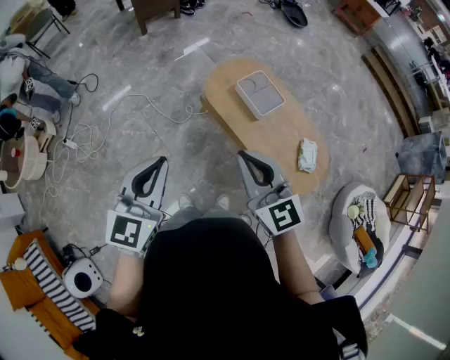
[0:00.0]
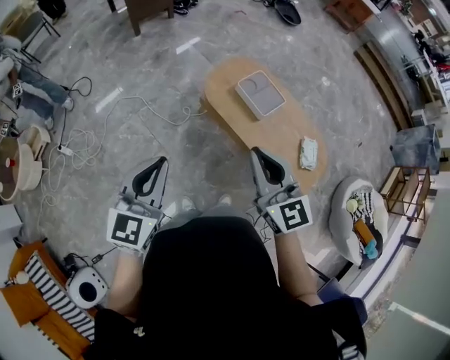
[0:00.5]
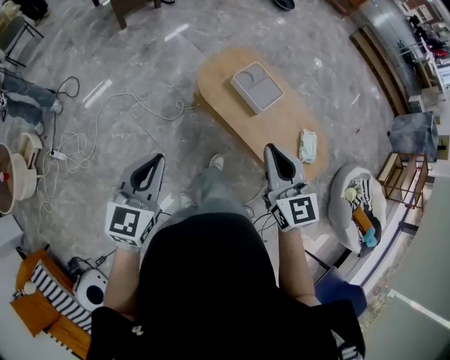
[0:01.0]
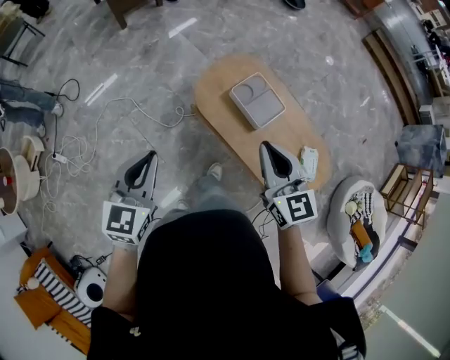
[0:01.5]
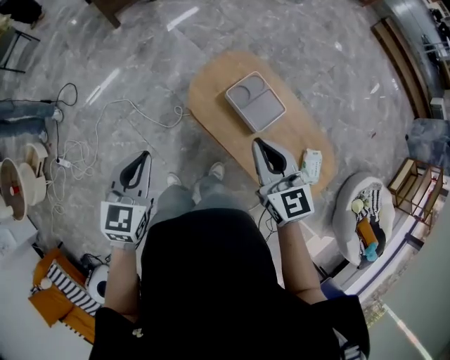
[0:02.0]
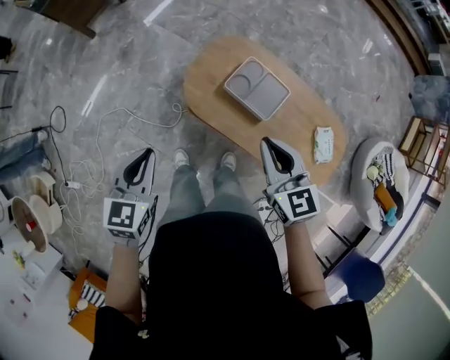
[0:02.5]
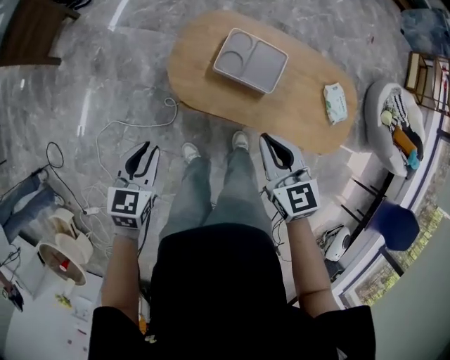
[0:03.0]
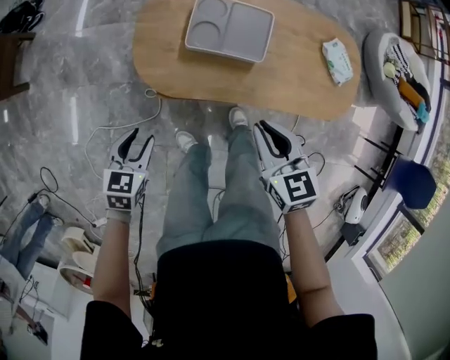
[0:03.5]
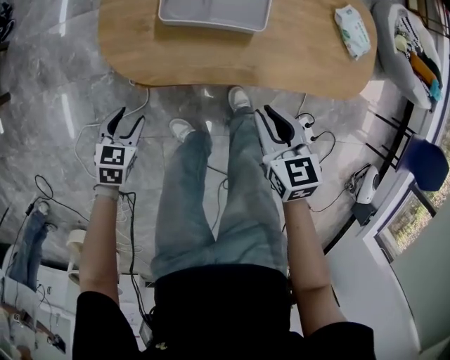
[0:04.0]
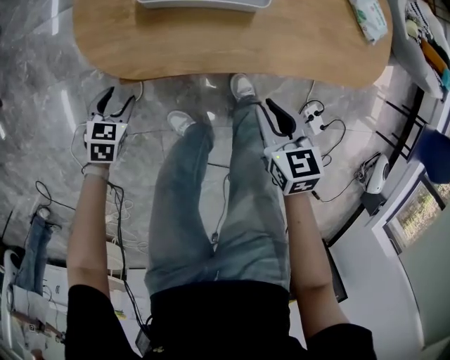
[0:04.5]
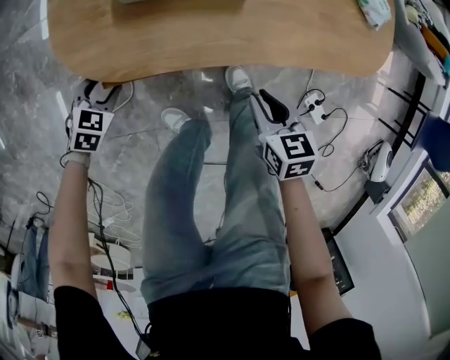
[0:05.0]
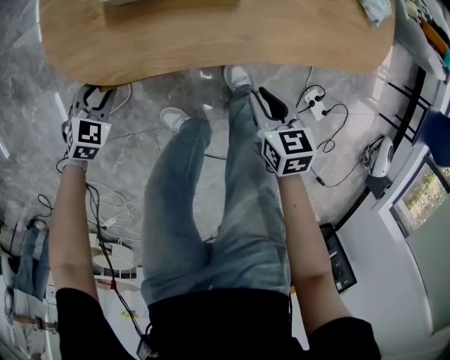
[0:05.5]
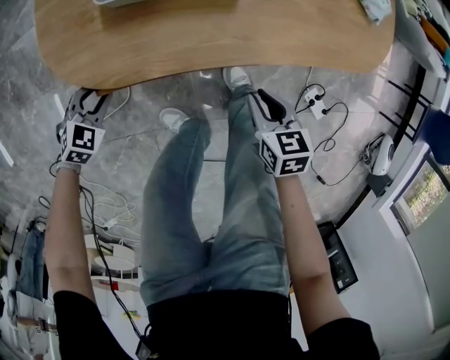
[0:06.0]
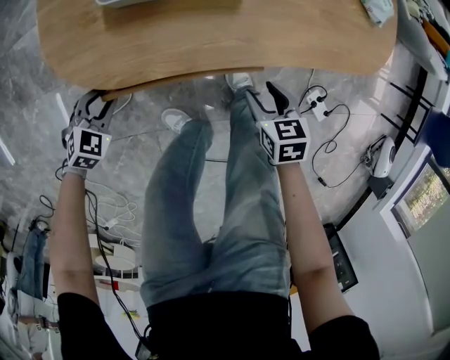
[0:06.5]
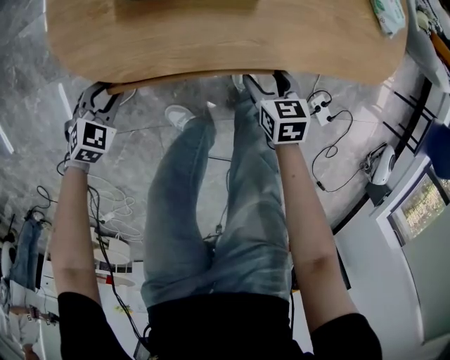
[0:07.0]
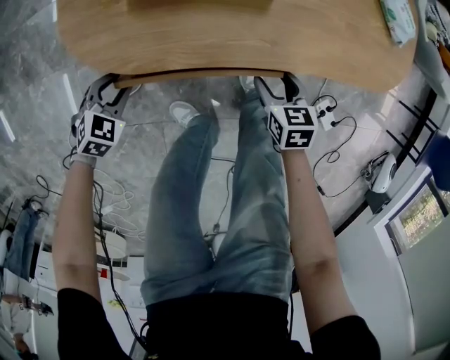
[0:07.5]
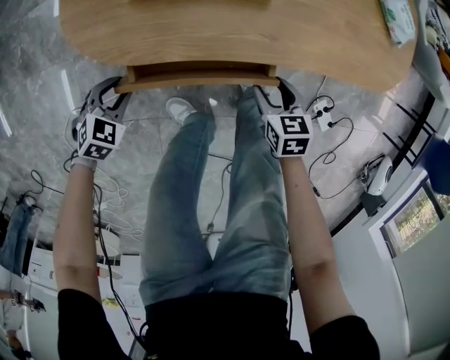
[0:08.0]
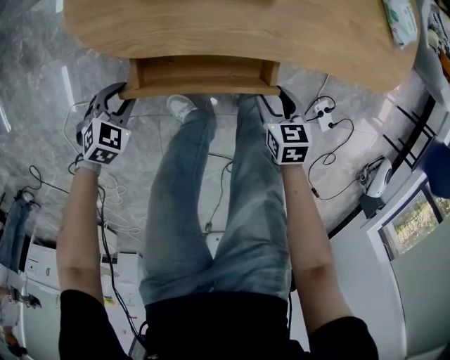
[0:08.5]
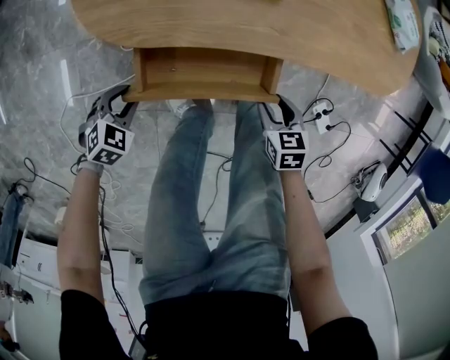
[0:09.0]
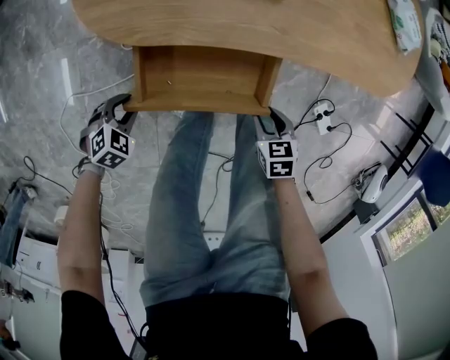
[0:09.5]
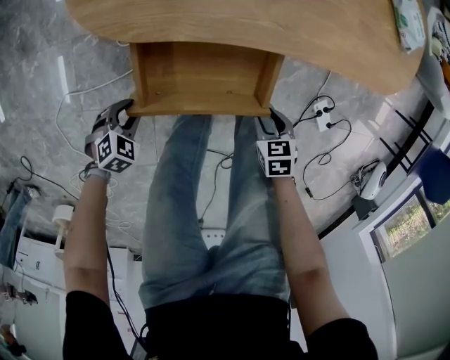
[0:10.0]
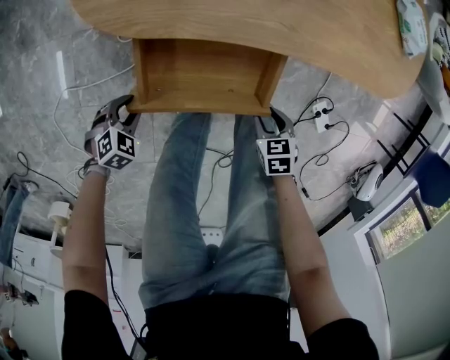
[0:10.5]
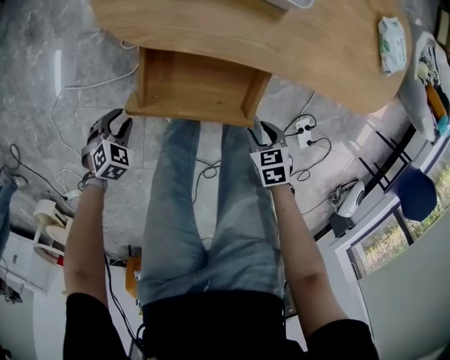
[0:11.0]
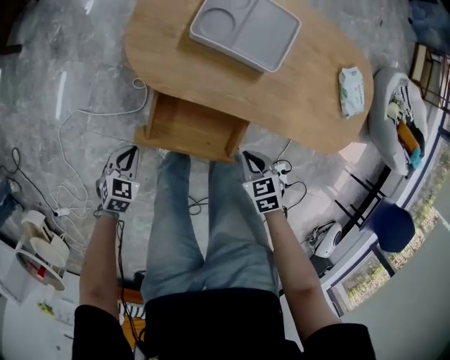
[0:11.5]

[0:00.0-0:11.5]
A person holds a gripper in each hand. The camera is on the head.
0:00.0 to 0:02.0: The right gripper is displaced forward by some 30 cm. Meanwhile the left gripper travels forward and downward by about 35 cm.
0:02.0 to 0:04.0: The grippers both shift downward by some 50 cm. The left gripper changes its angle by about 60 degrees, and opens its fingers. Meanwhile the right gripper turns by some 60 degrees.
0:04.0 to 0:06.0: Both grippers move downward, approximately 15 cm. The left gripper rotates roughly 40 degrees, and closes up.
0:06.0 to 0:07.5: The right gripper travels downward by roughly 5 cm, and opens up.
0:07.5 to 0:09.5: Both grippers travel together backward, some 15 cm. The right gripper closes up.
0:09.5 to 0:11.5: Both grippers move upward, some 15 cm. The right gripper changes its angle by roughly 20 degrees, and closes up. Meanwhile the left gripper rotates about 40 degrees, and closes its fingers.

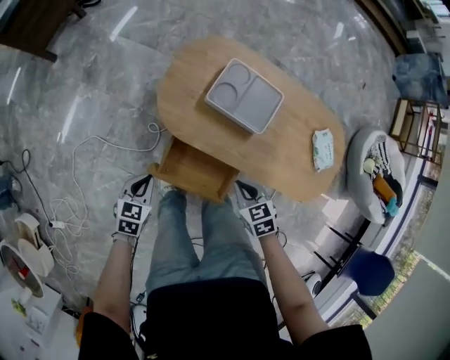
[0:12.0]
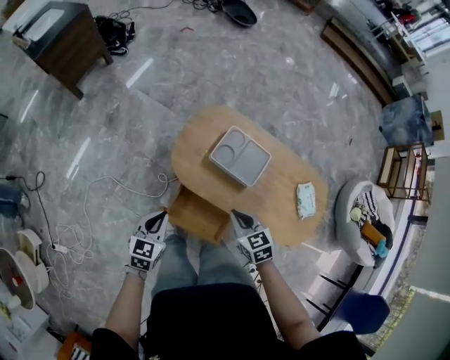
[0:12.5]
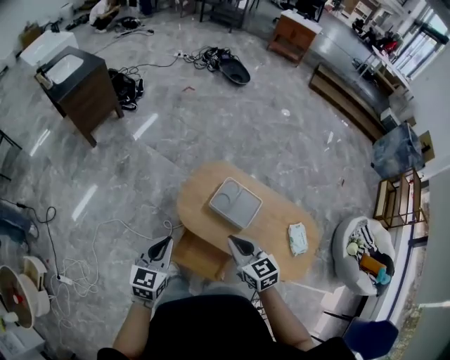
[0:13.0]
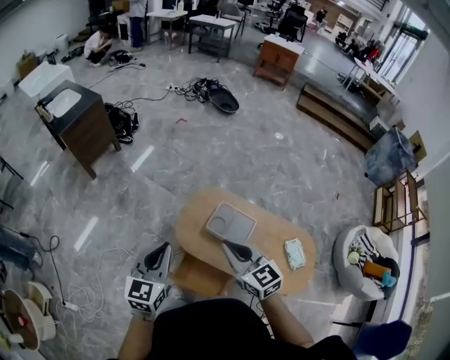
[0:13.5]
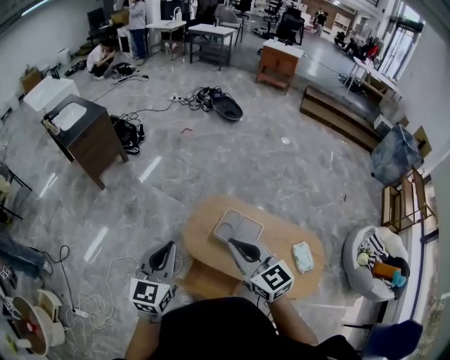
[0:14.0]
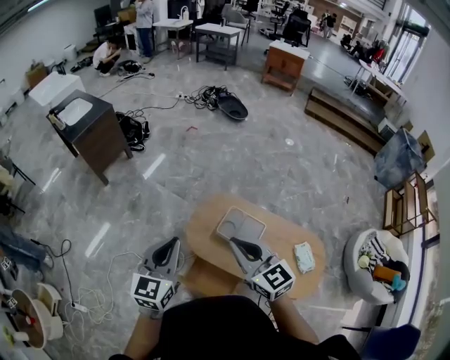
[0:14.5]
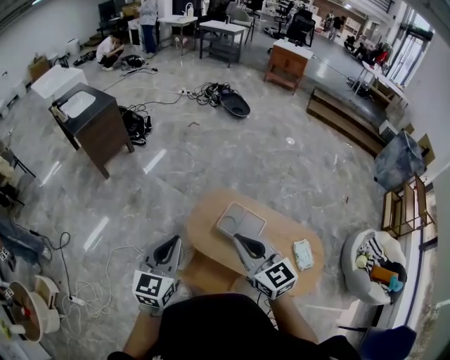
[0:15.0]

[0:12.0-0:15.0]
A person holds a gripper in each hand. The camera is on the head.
0:12.0 to 0:13.5: Both grippers move upward, roughly 50 cm. The right gripper points its fingers some 40 degrees further upward. The left gripper angles its fingers upward, by some 40 degrees.
0:13.5 to 0:15.0: The right gripper heads upward, covering approximately 5 cm.

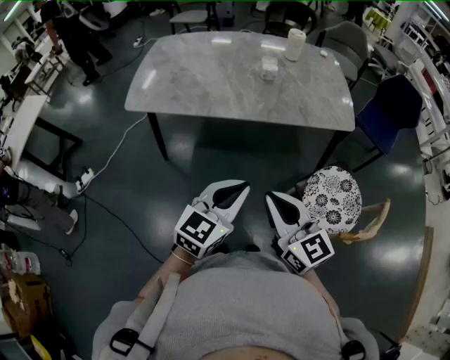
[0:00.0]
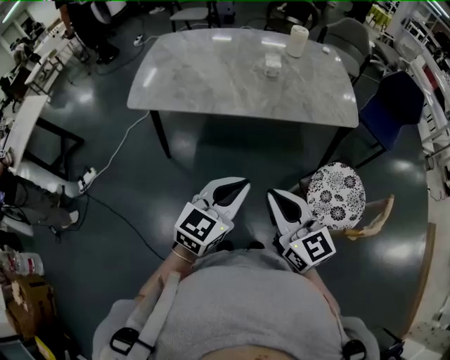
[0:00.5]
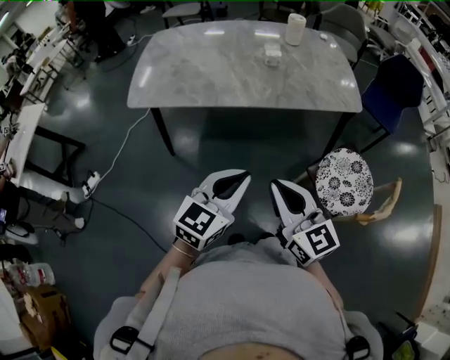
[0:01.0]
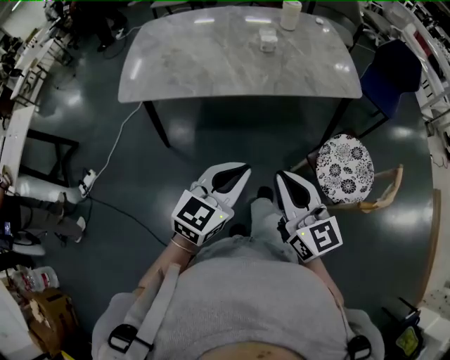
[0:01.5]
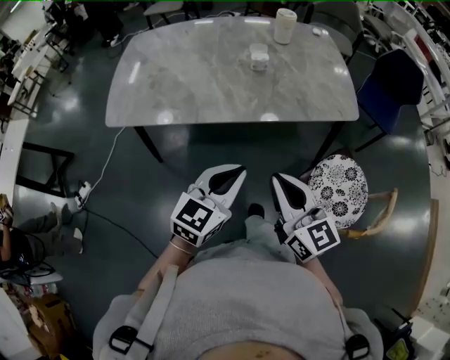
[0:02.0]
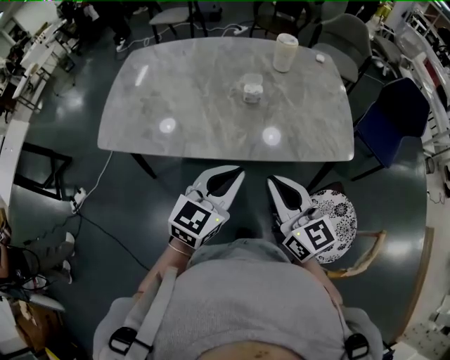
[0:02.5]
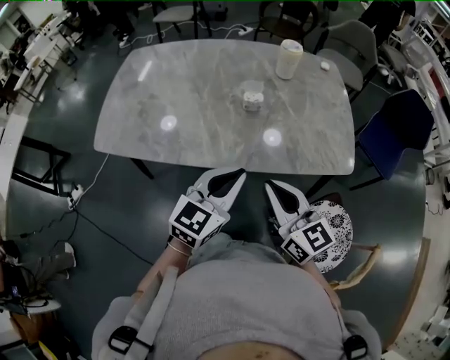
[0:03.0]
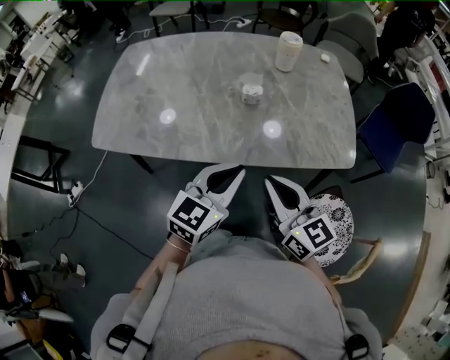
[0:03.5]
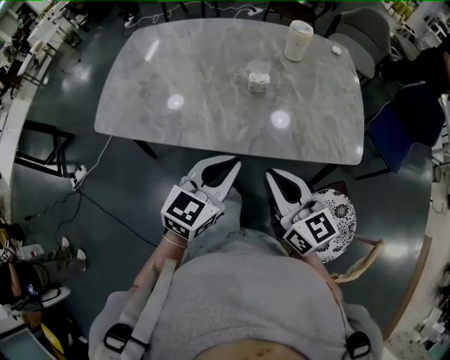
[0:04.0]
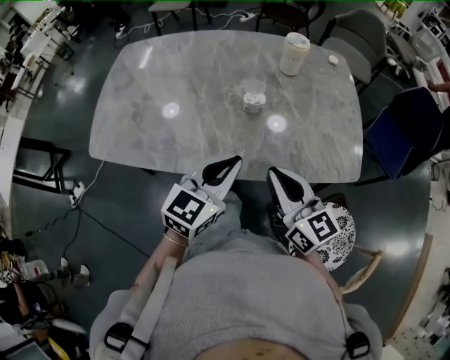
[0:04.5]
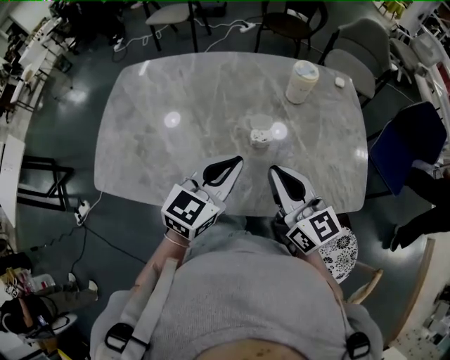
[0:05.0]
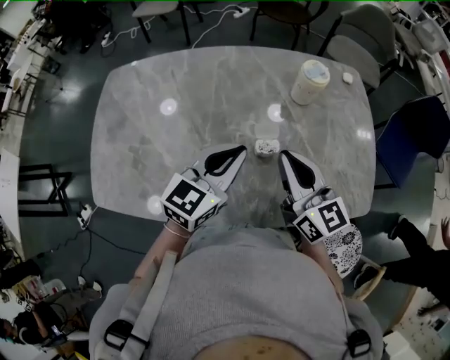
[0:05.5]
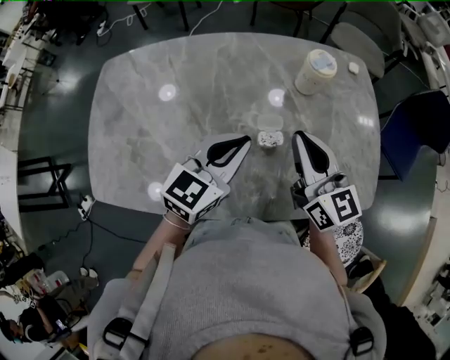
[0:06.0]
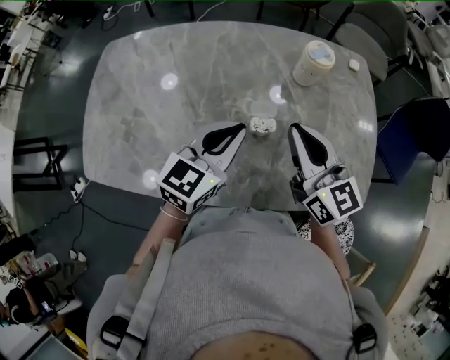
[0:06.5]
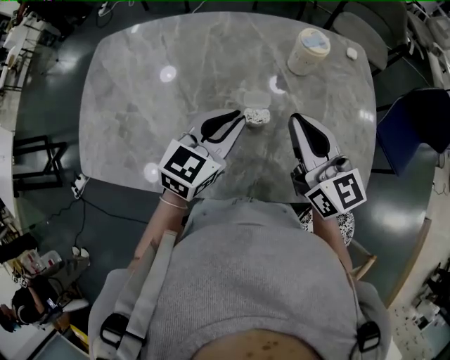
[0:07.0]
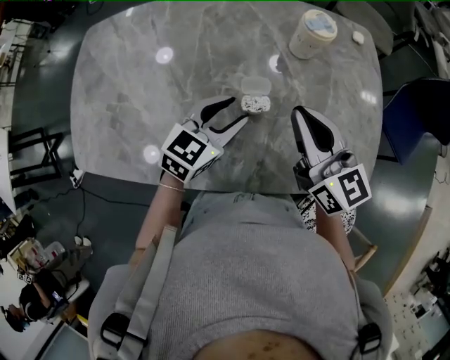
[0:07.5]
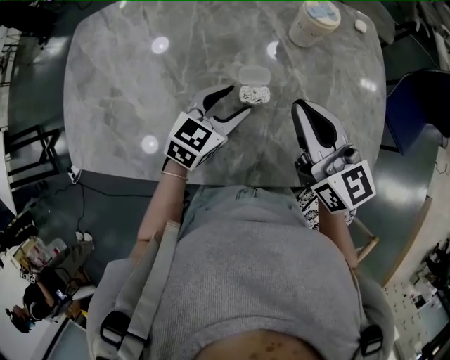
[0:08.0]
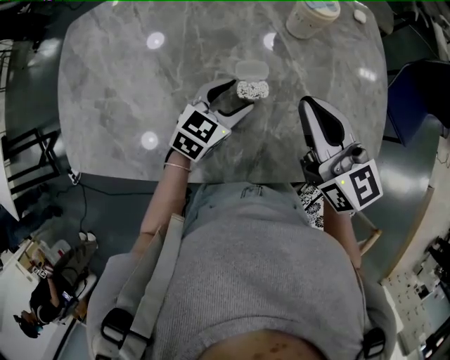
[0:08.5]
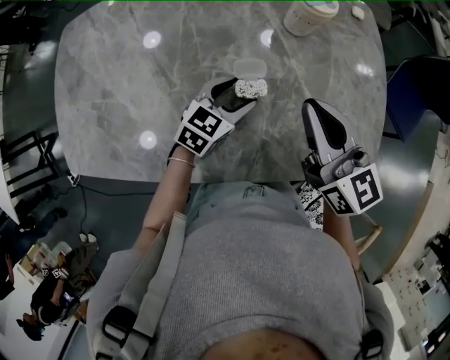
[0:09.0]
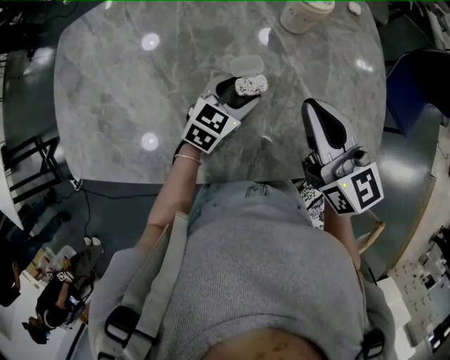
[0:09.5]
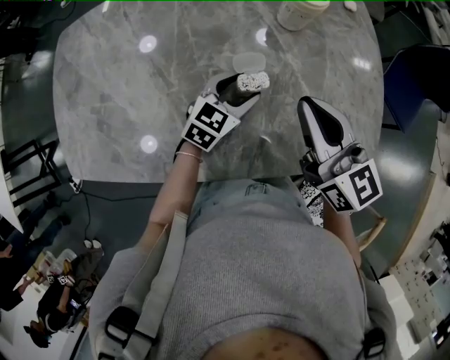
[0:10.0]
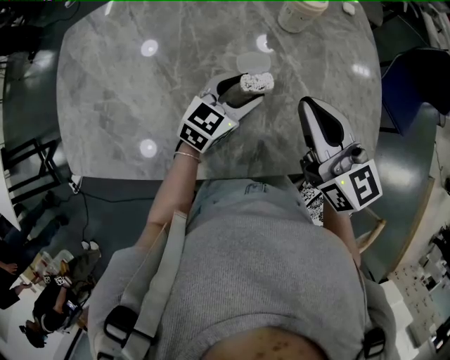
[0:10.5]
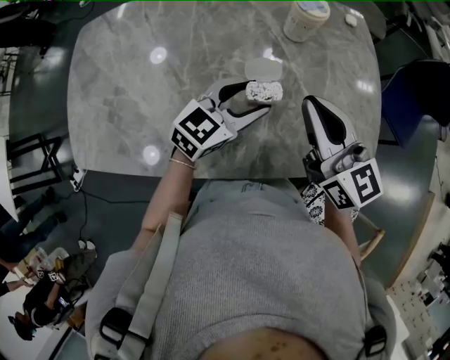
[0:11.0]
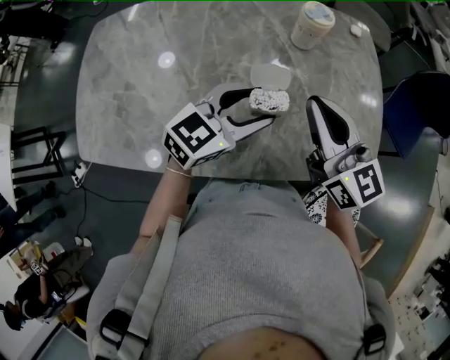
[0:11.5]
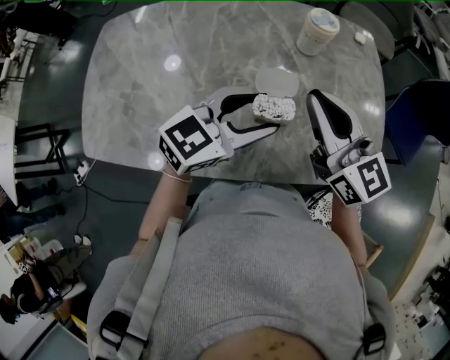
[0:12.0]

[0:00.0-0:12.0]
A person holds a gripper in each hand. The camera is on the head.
0:00.0 to 0:02.0: The two grippers go some 10 cm forward.
0:02.0 to 0:04.0: The two grippers go about 15 cm forward.
0:04.0 to 0:06.0: Both grippers travel together forward, about 30 cm.
0:06.0 to 0:08.0: The left gripper is displaced downward by about 10 cm, and opens.
0:08.0 to 0:10.0: The left gripper shifts about 5 cm downward.
0:10.0 to 0:12.0: The left gripper travels upward and backward by some 20 cm. Meanwhile the right gripper is displaced upward by roughly 5 cm.
